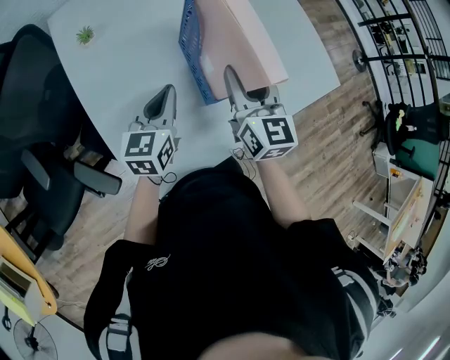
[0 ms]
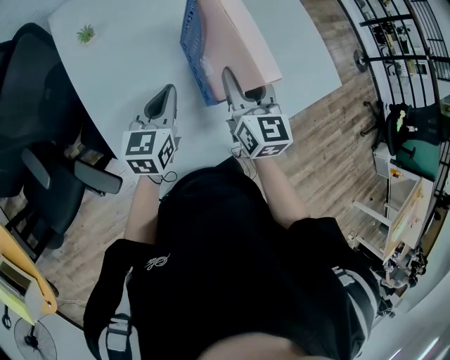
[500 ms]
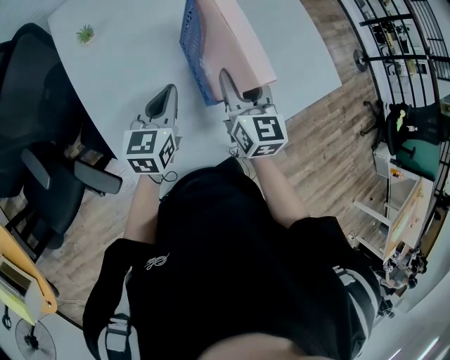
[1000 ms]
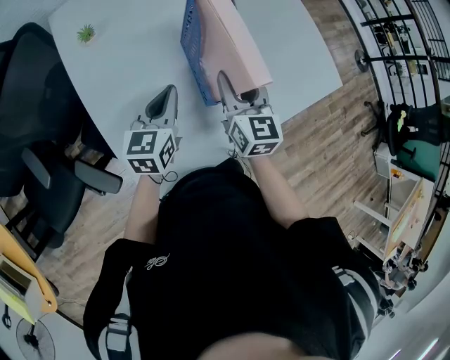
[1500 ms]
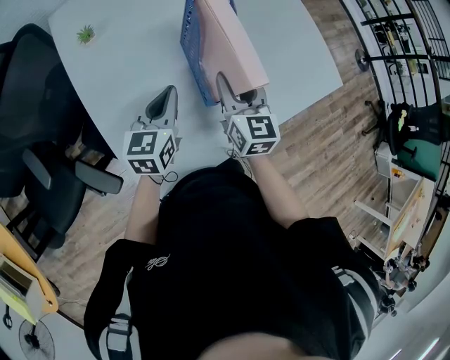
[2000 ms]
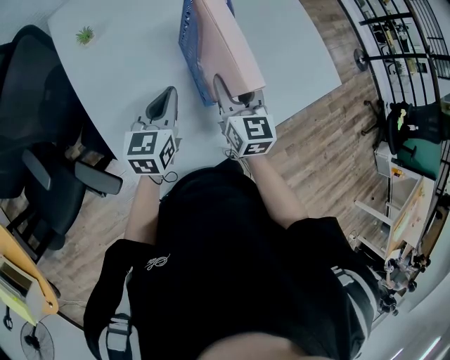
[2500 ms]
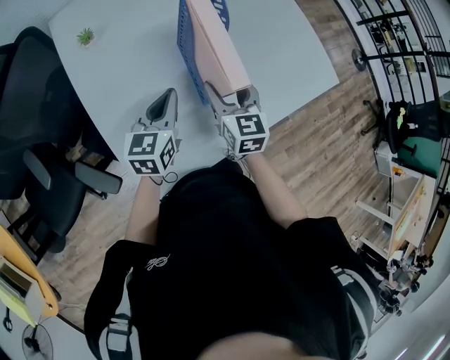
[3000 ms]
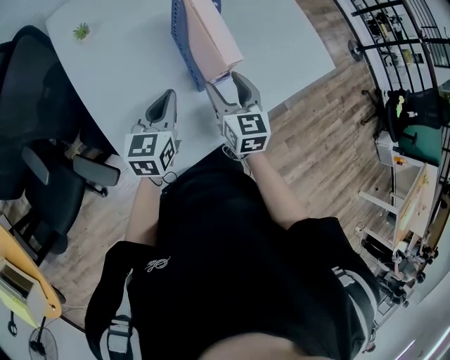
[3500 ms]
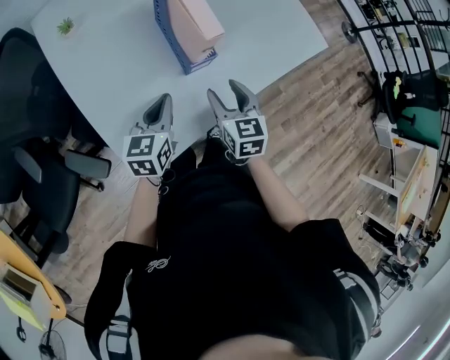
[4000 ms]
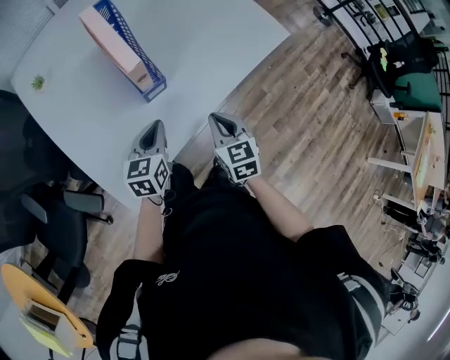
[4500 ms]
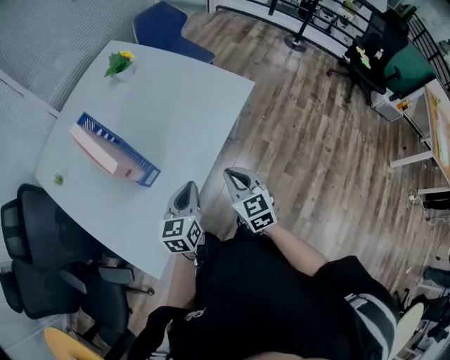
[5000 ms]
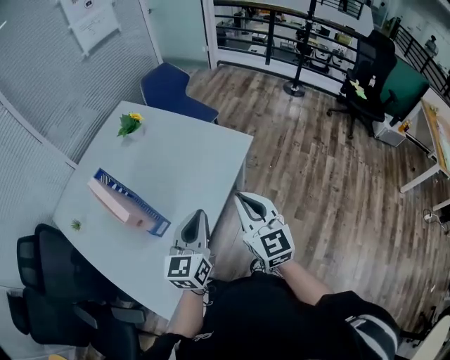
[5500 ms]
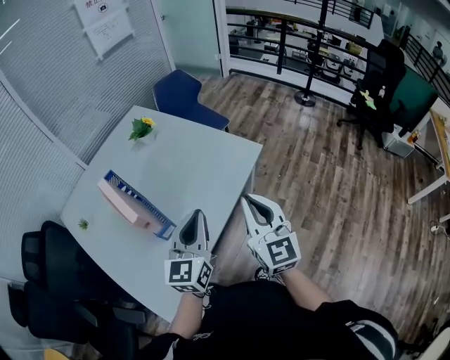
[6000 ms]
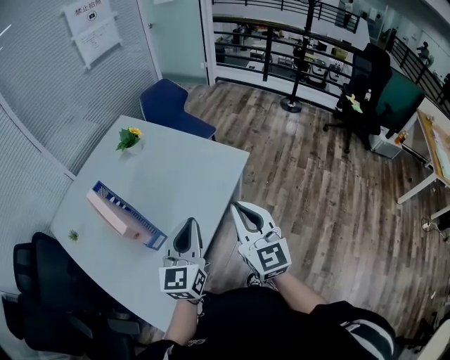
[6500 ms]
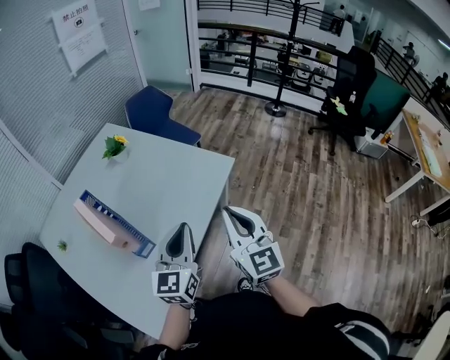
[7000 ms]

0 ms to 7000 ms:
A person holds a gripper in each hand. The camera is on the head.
0 ms to 2000 ms: The right gripper shifts some 5 cm downward.
2000 ms to 3500 ms: Both grippers travel together backward, roughly 5 cm. The right gripper opens.
3500 ms to 5000 ms: The grippers both shift to the right by about 30 cm. The right gripper closes up.
5000 ms to 7000 ms: The grippers both shift upward by roughly 20 cm. The left gripper turns by roughly 20 degrees, while the right gripper rotates some 30 degrees.

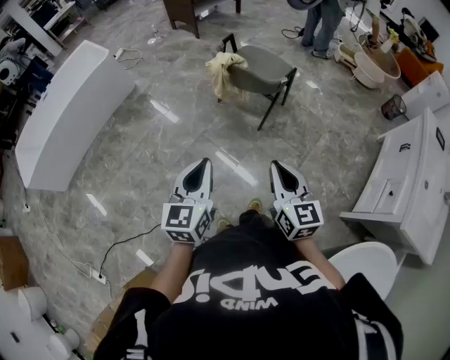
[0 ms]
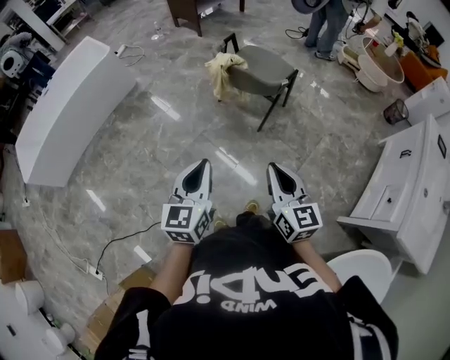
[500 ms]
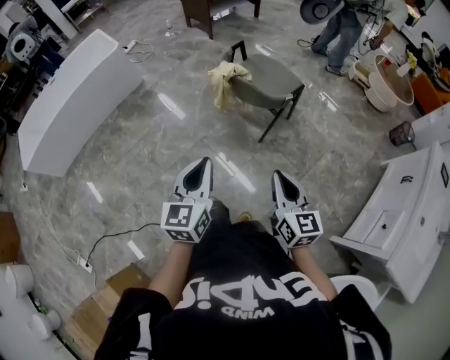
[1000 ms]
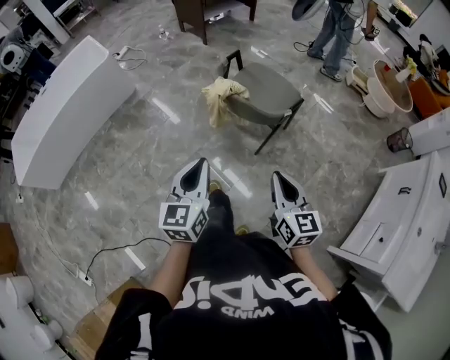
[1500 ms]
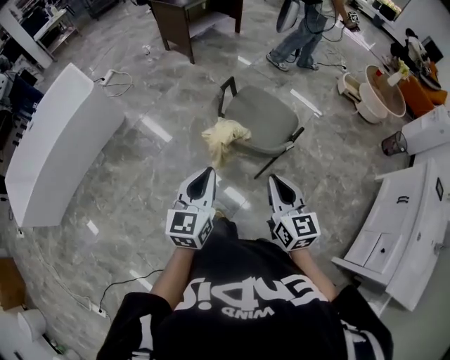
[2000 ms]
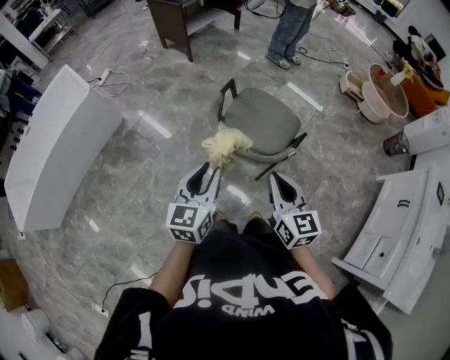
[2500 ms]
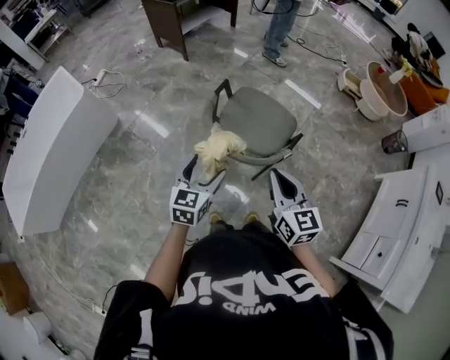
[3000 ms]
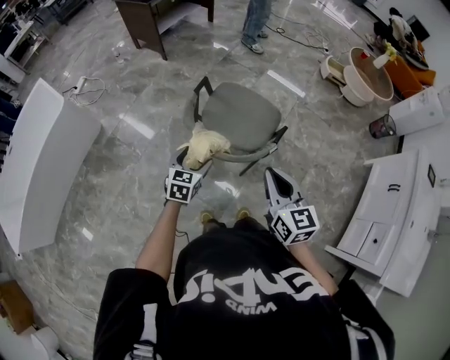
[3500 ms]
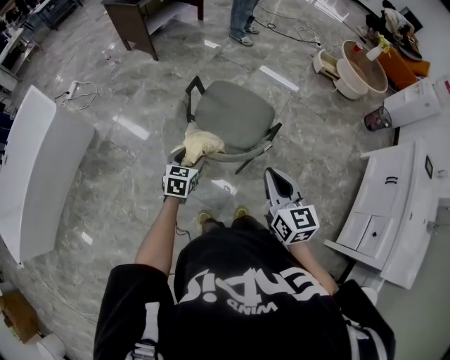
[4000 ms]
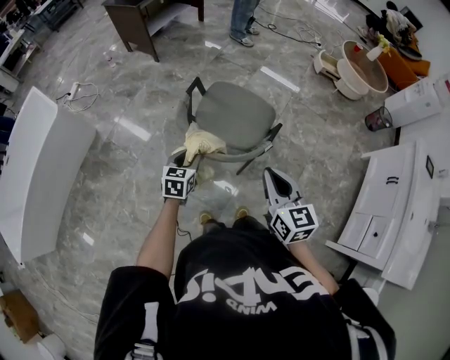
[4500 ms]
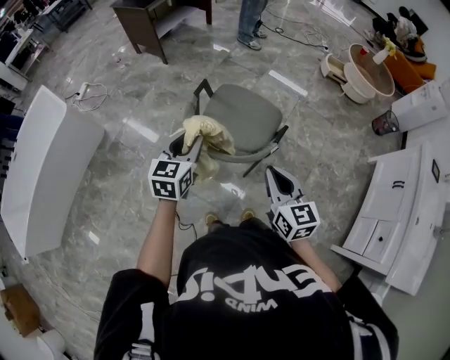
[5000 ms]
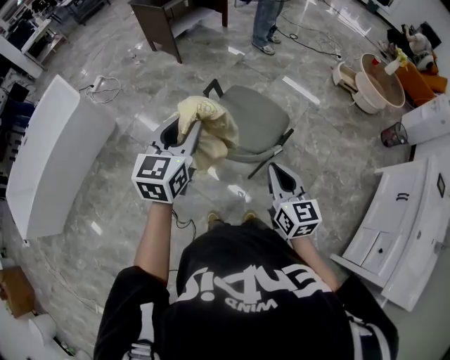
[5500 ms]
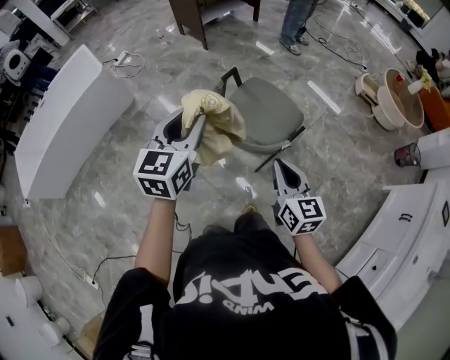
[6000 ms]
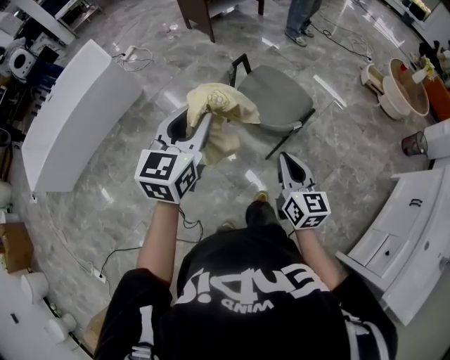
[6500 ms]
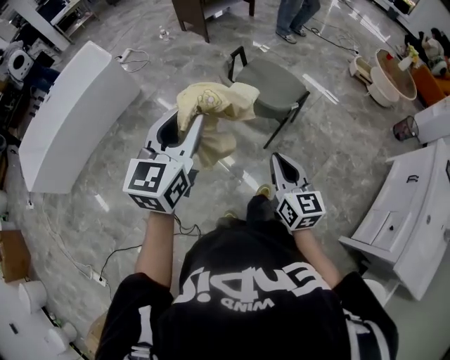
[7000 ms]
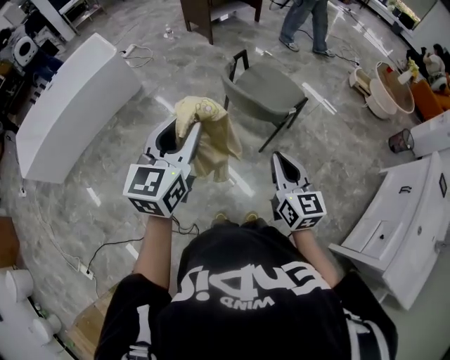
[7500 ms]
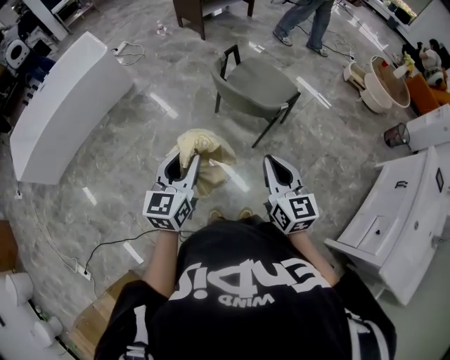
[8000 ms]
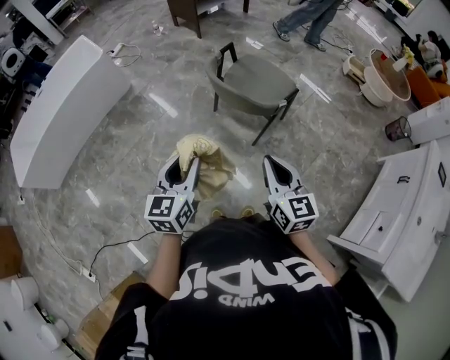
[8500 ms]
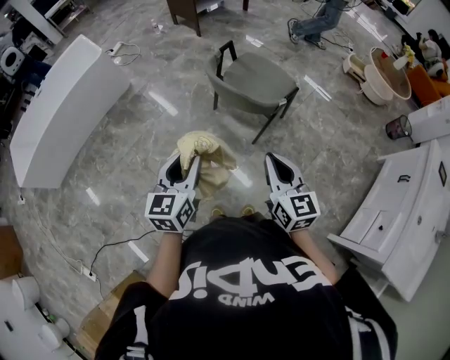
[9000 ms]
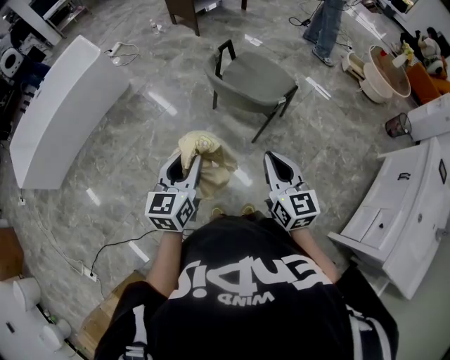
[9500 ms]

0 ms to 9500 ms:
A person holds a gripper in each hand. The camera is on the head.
0 ms to 2000 ms: Both grippers travel together forward, roughly 35 cm.
2000 ms to 4000 ms: The left gripper heads downward and forward, covering some 30 cm, swivels approximately 30 degrees, and opens up. The right gripper is displaced forward and to the right by roughly 10 cm.
4000 ms to 5500 ms: The left gripper heads upward, covering some 30 cm, swivels some 30 degrees, and closes up.
5500 ms to 7500 ms: The grippers both shift backward by some 30 cm.
7500 ms to 9500 ms: The left gripper heads downward, covering approximately 15 cm.

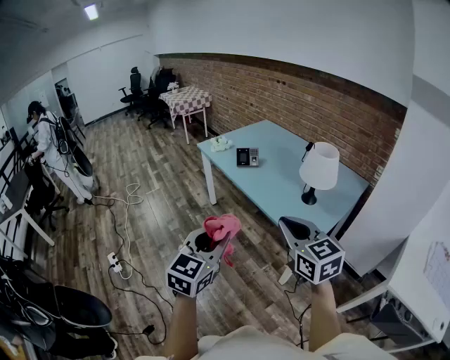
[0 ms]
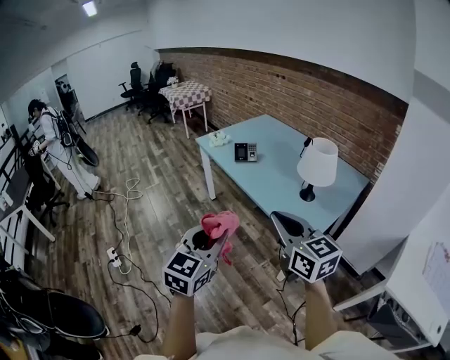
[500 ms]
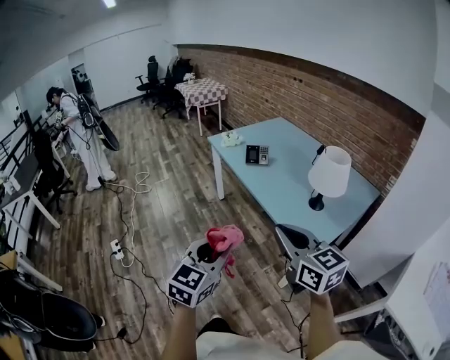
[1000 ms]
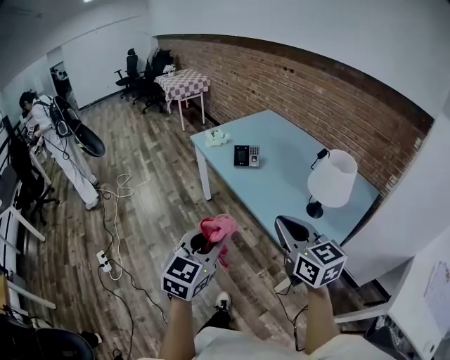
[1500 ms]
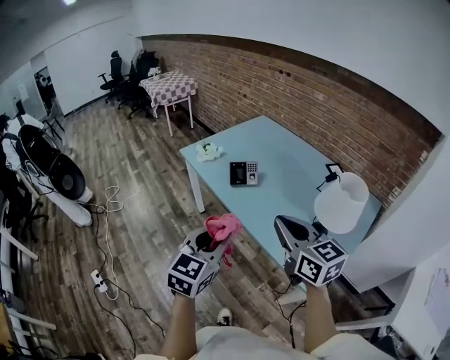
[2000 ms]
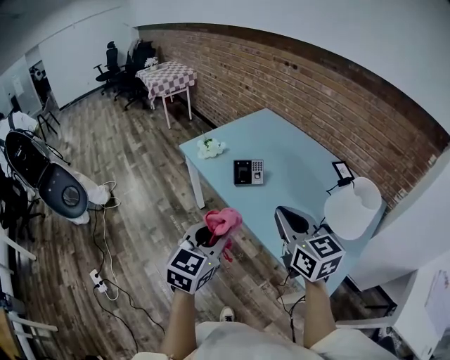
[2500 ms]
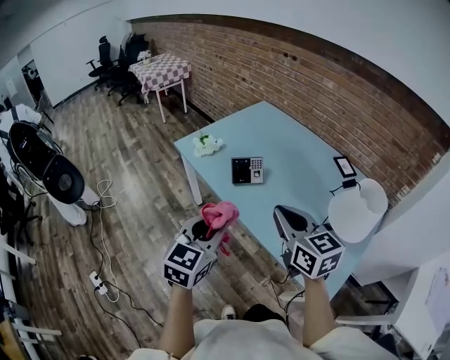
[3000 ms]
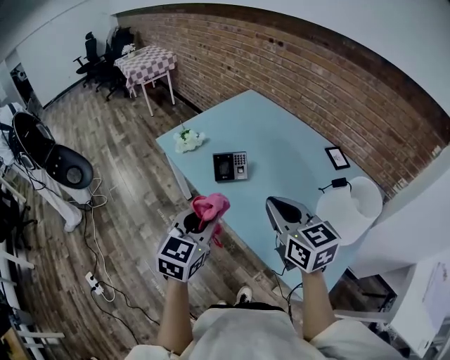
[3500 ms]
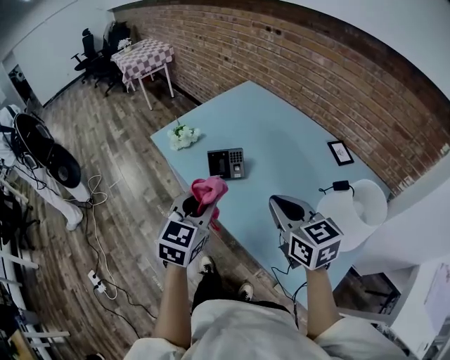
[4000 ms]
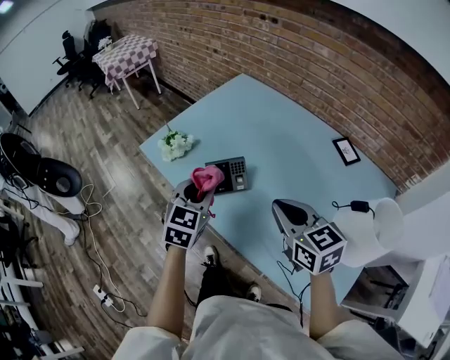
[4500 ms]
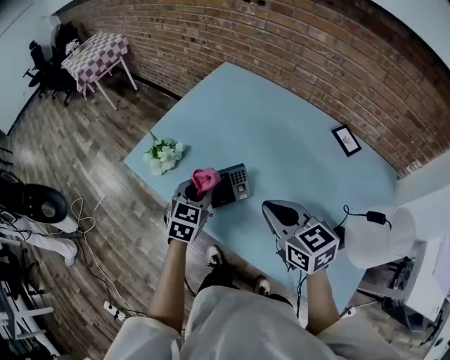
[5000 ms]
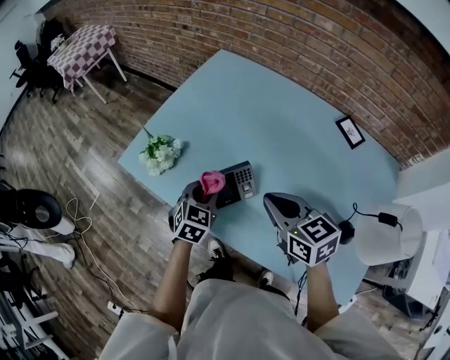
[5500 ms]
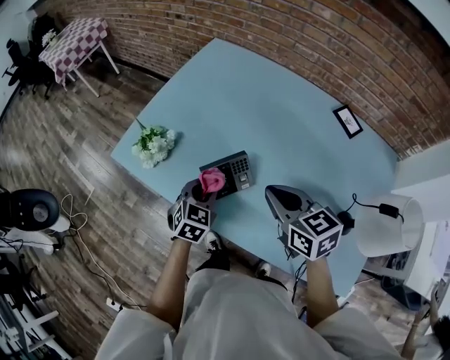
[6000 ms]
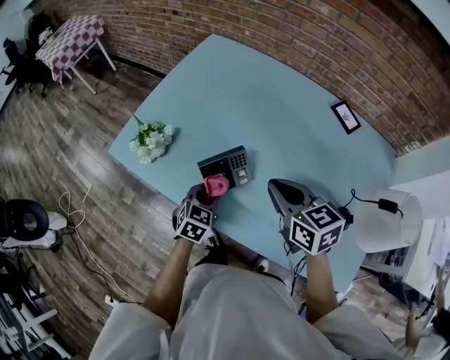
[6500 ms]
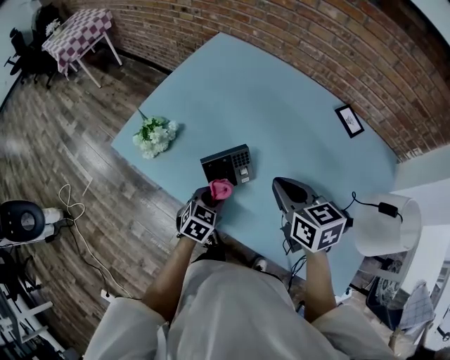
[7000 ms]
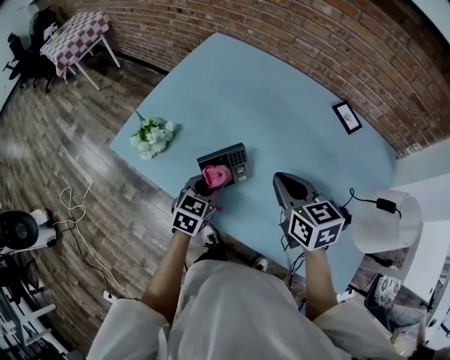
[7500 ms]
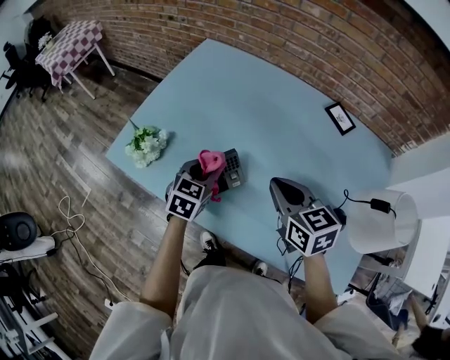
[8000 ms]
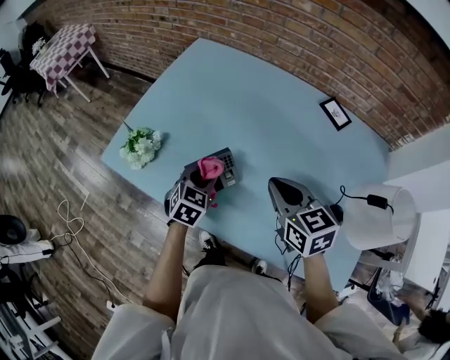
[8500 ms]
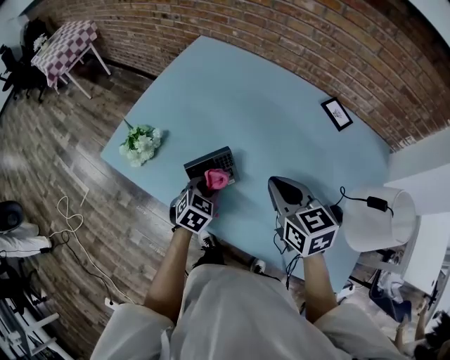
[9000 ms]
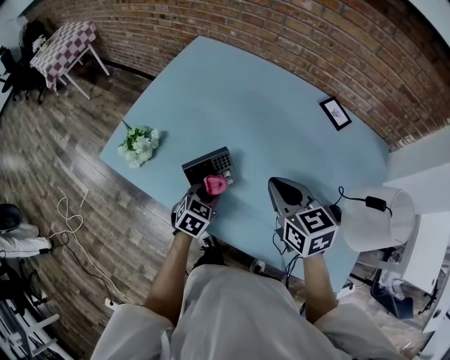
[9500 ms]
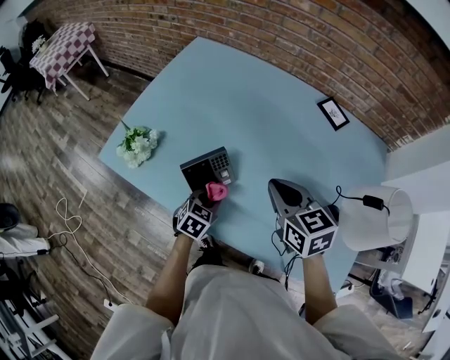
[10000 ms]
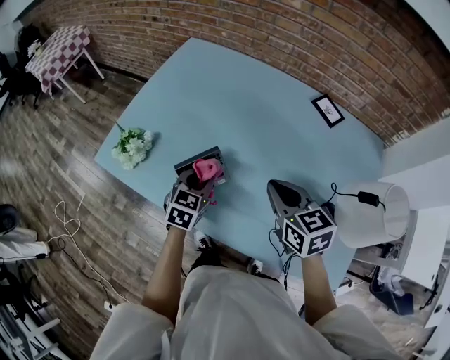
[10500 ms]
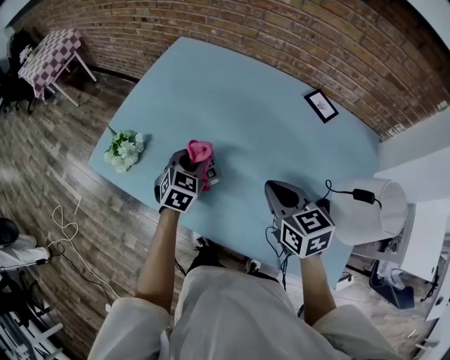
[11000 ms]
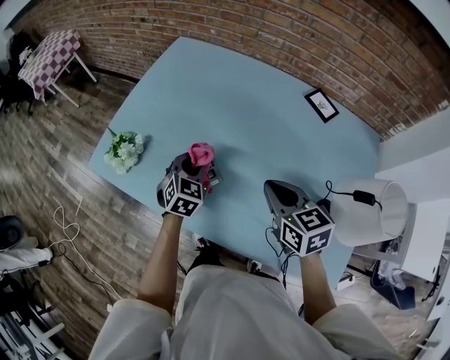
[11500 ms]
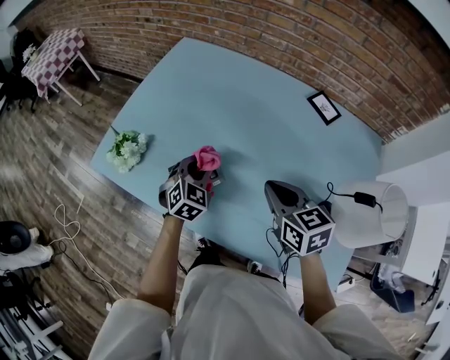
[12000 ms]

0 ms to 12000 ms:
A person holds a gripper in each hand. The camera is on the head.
0 ms to 2000 ms: The grippers both shift forward by roughly 30 cm.
2000 ms to 4000 ms: Both grippers move forward, some 20 cm.
4000 ms to 6000 ms: The two grippers go roughly 25 cm forward and downward. The left gripper swivels roughly 30 degrees.
6000 ms to 8000 ms: The left gripper ends up approximately 5 cm from where it was.
8000 ms to 10000 ms: The left gripper heads downward, backward and to the right, covering approximately 15 cm.
10000 ms to 12000 ms: The left gripper goes about 15 cm forward and upward, and turns by approximately 30 degrees.
